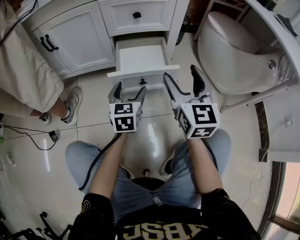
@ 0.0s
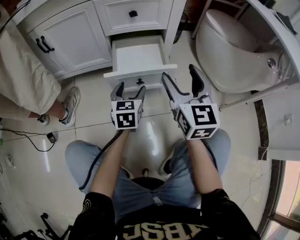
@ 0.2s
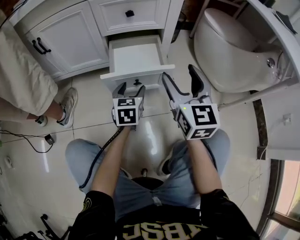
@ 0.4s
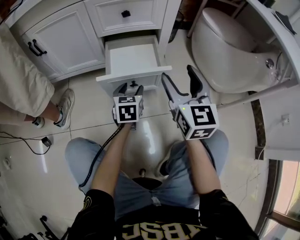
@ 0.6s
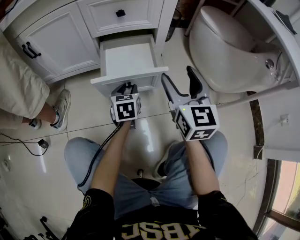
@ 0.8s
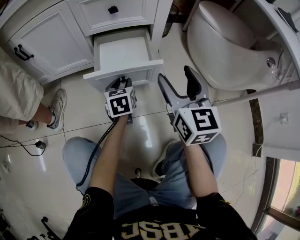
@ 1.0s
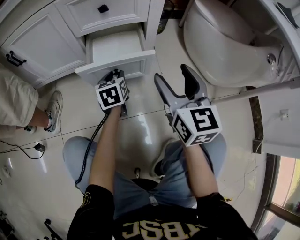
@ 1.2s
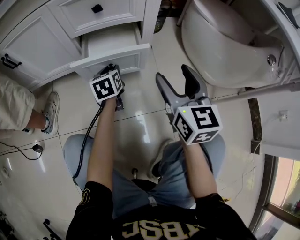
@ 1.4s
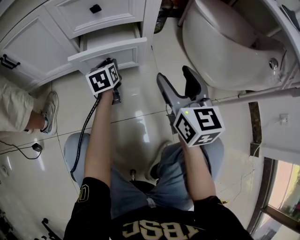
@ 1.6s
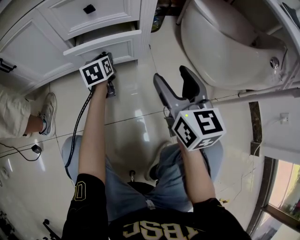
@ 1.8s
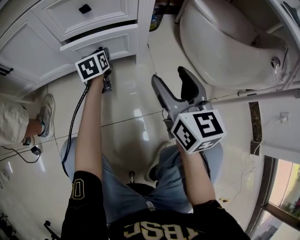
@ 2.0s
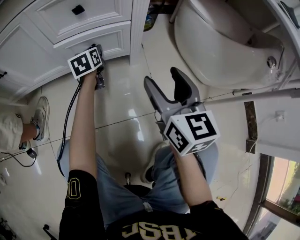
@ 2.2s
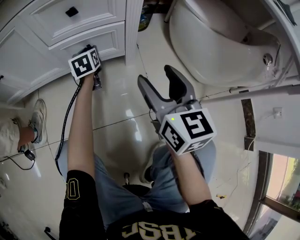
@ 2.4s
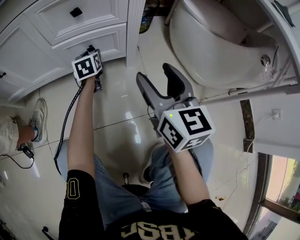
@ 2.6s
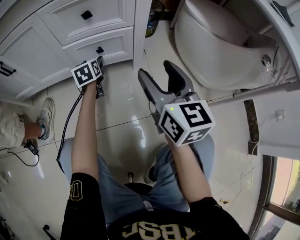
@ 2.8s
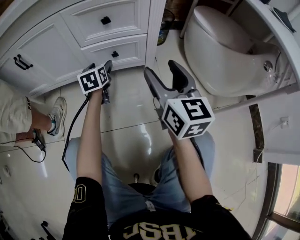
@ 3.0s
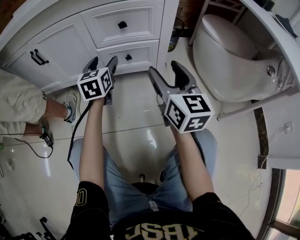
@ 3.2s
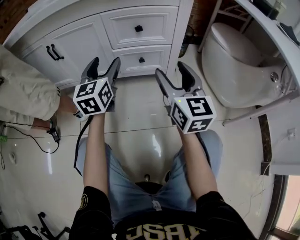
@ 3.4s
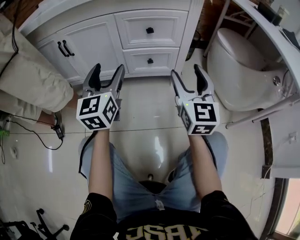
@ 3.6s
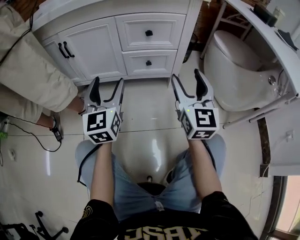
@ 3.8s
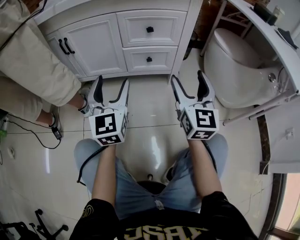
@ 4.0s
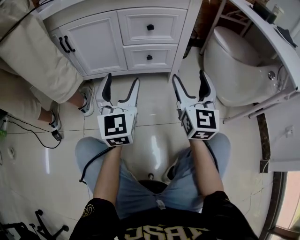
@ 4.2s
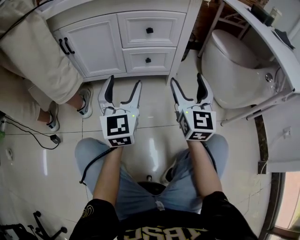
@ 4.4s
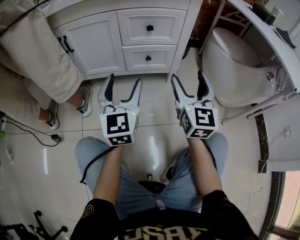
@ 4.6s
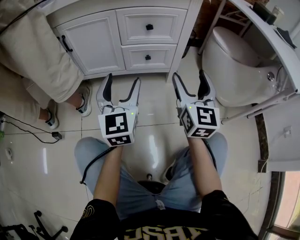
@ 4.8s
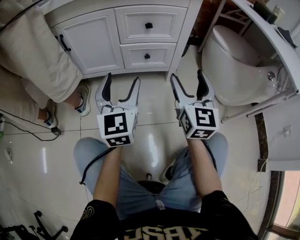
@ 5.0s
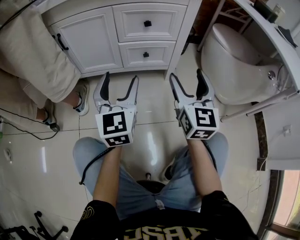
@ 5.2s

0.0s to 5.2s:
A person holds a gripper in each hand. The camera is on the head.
0.0s to 1.8s: The left gripper goes about 20 cm forward, and closes up. Meanwhile the right gripper goes about 10 cm to the right and forward.
1.8s to 3.4s: The right gripper shifts some 15 cm to the left and upward. Meanwhile the left gripper heads upward, backward and to the left, covering about 30 cm, turns by about 30 degrees, and opens its fingers.
3.4s to 5.2s: The left gripper moves backward, roughly 10 cm.

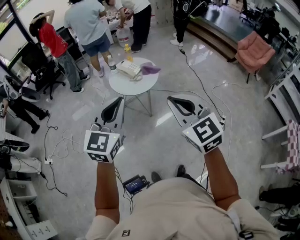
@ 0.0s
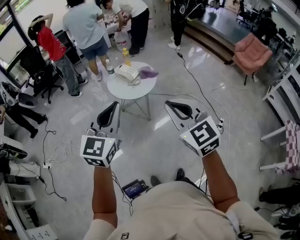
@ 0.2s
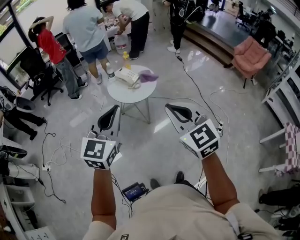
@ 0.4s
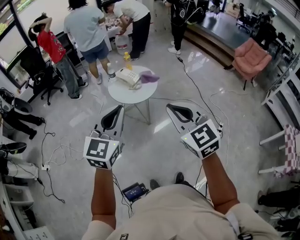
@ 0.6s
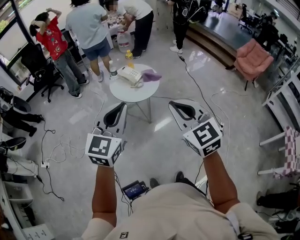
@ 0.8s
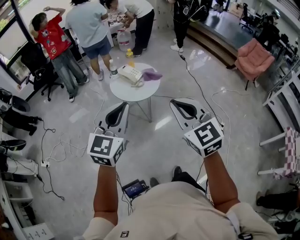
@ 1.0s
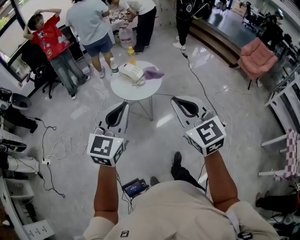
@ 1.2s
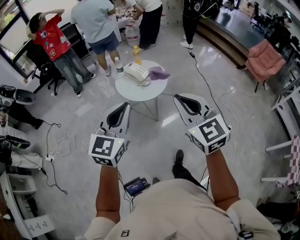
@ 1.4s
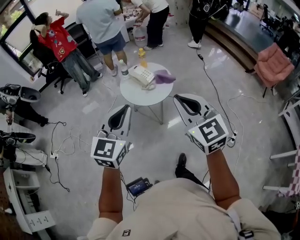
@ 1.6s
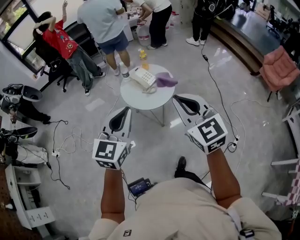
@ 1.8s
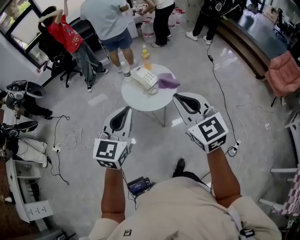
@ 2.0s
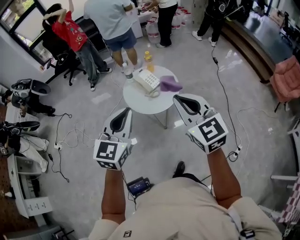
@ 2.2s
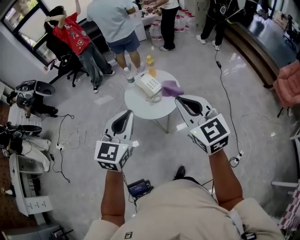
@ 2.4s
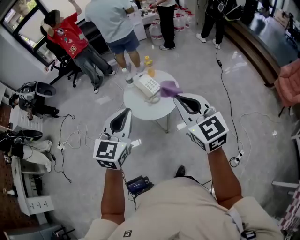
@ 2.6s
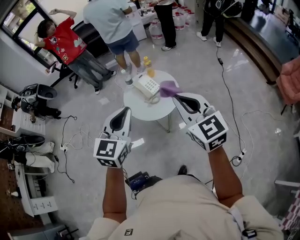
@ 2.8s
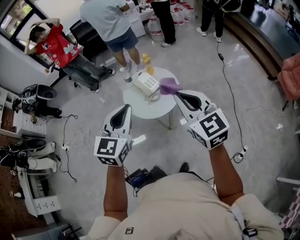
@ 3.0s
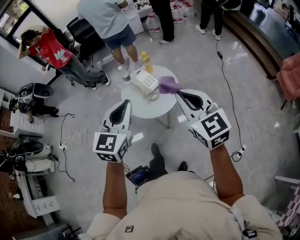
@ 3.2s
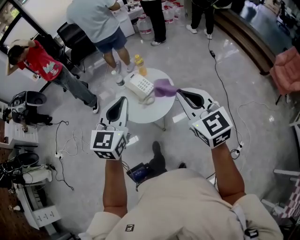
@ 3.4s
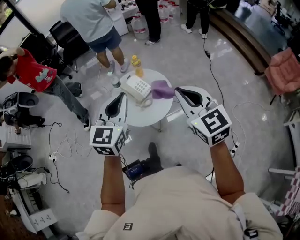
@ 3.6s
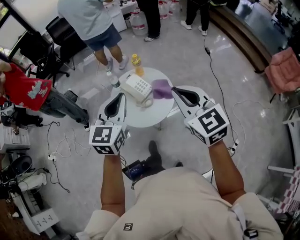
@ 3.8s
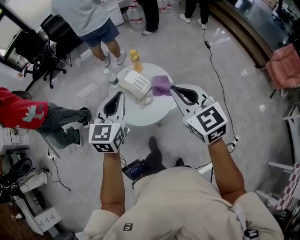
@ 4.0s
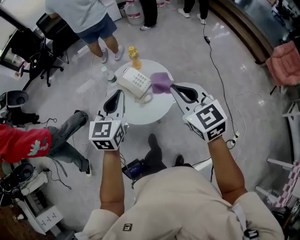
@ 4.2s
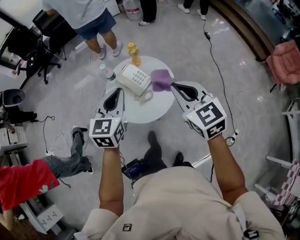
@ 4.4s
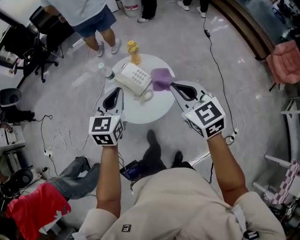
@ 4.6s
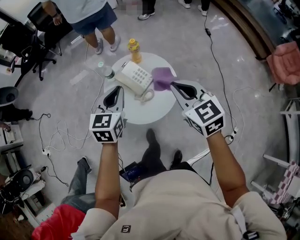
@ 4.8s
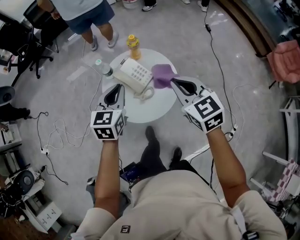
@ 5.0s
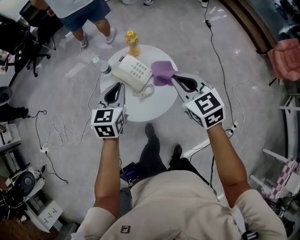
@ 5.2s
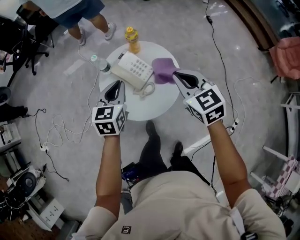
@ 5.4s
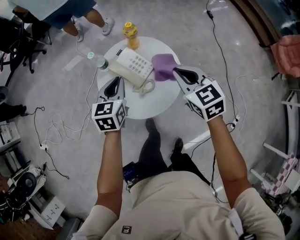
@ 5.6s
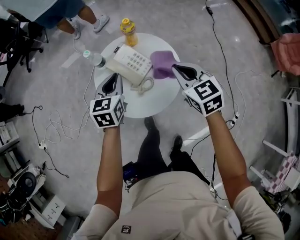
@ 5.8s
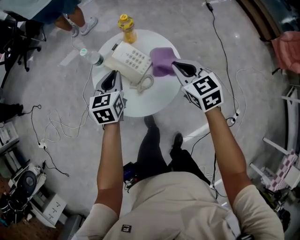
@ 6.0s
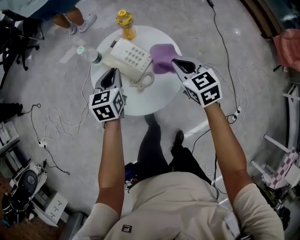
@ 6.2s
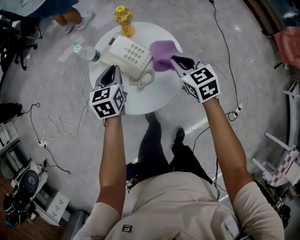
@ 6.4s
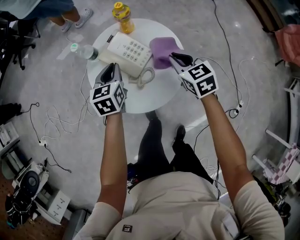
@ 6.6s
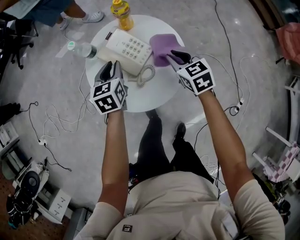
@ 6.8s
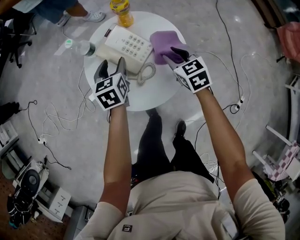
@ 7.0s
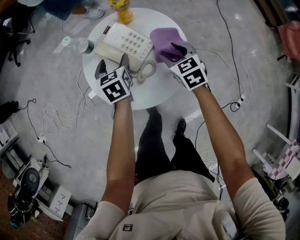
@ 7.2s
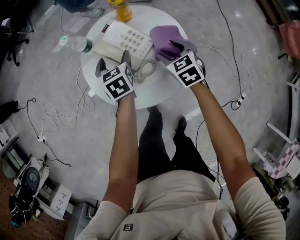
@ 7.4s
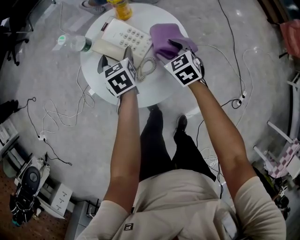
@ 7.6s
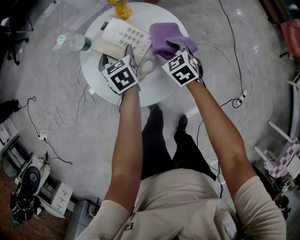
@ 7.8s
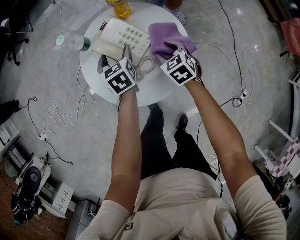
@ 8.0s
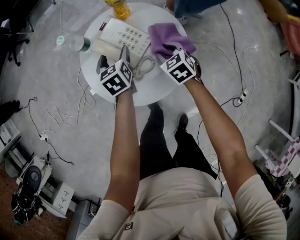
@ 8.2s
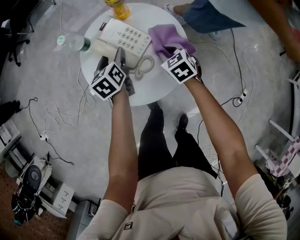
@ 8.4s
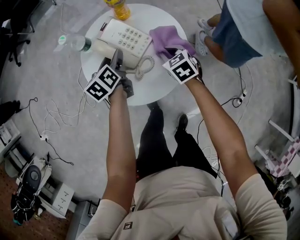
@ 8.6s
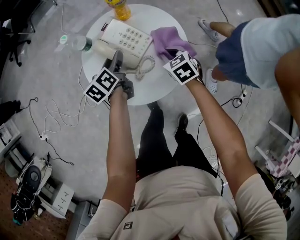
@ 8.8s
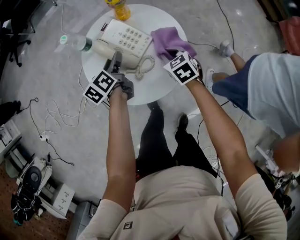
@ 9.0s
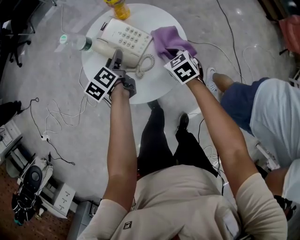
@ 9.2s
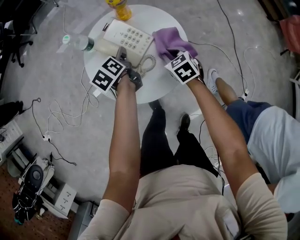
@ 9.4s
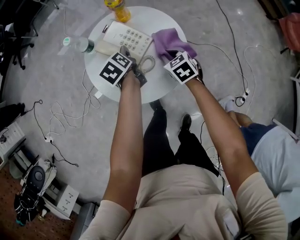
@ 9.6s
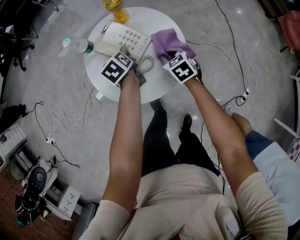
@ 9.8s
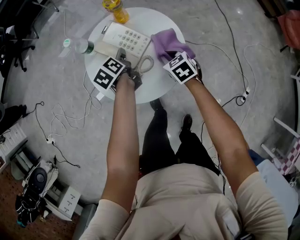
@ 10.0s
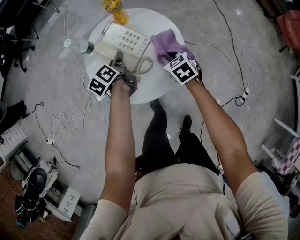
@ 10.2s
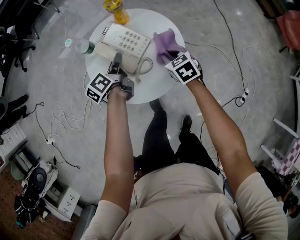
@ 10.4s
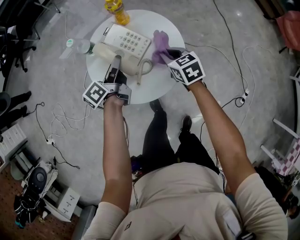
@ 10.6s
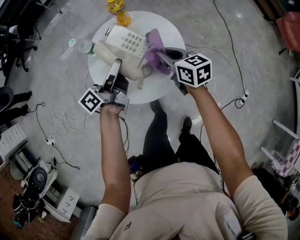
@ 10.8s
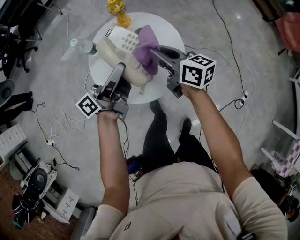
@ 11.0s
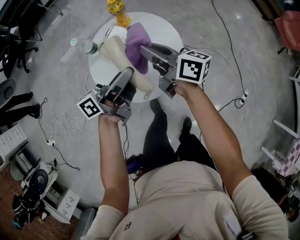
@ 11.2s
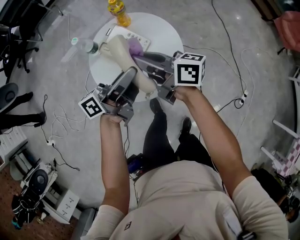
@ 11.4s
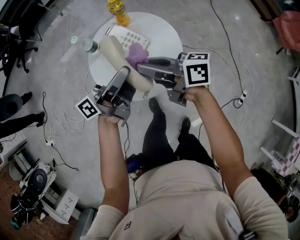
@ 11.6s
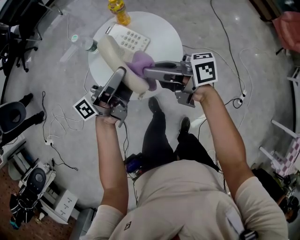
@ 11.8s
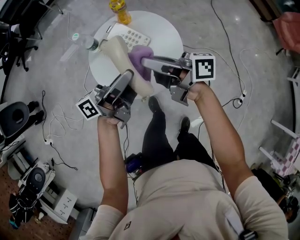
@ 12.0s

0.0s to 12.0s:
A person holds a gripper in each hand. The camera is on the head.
0.0s to 1.6s: Both grippers travel together forward, roughly 15 cm.
1.6s to 3.0s: The two grippers go approximately 20 cm forward and to the right.
3.0s to 4.4s: Both grippers travel together forward and downward, approximately 25 cm.
4.4s to 6.0s: Both grippers move downward and forward, approximately 25 cm.
6.0s to 7.6s: The grippers both shift downward by some 15 cm. The right gripper opens its fingers, while the left gripper turns by roughly 20 degrees, and opens up.
7.6s to 9.0s: The left gripper swivels some 40 degrees, and closes. Meanwhile the right gripper closes up.
10.4s to 12.0s: The right gripper moves upward, roughly 25 cm, and points its fingers about 60 degrees further upward; the left gripper heads upward and backward, covering about 25 cm, and tilts its fingers some 40 degrees upward.

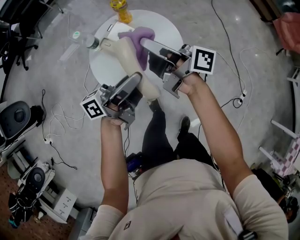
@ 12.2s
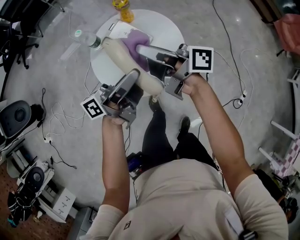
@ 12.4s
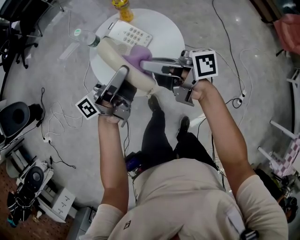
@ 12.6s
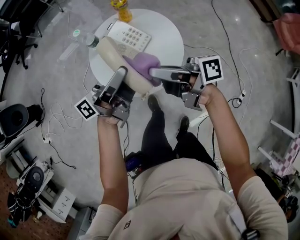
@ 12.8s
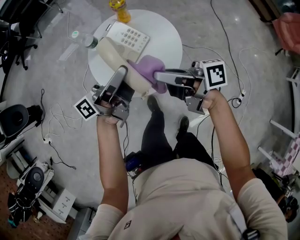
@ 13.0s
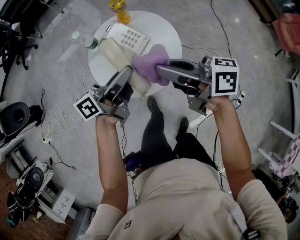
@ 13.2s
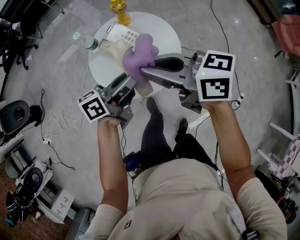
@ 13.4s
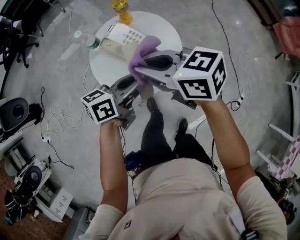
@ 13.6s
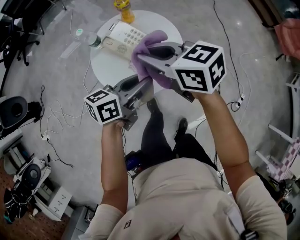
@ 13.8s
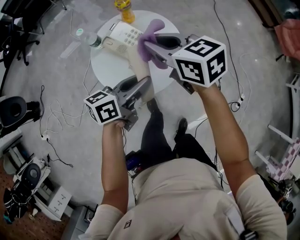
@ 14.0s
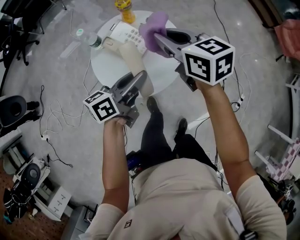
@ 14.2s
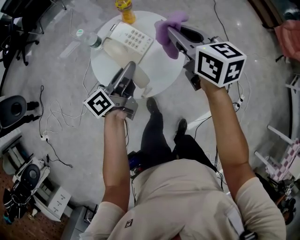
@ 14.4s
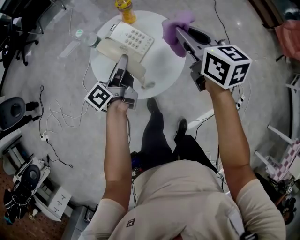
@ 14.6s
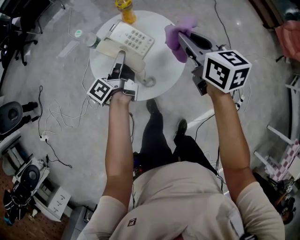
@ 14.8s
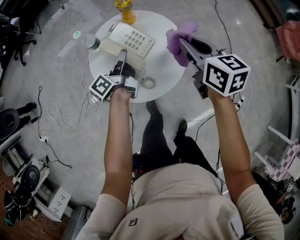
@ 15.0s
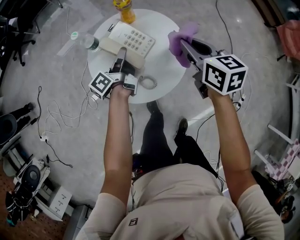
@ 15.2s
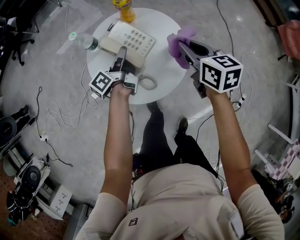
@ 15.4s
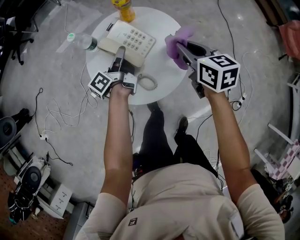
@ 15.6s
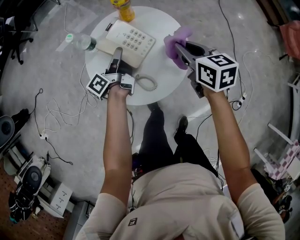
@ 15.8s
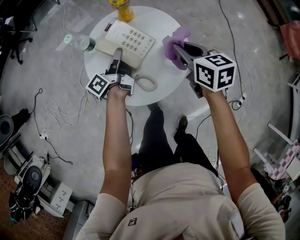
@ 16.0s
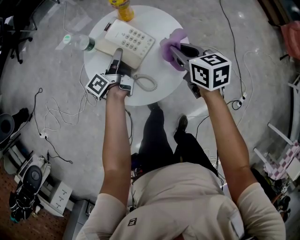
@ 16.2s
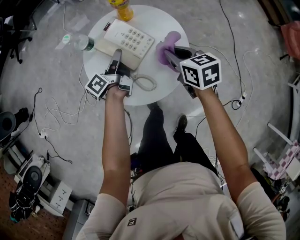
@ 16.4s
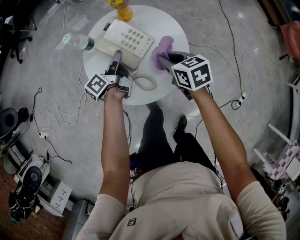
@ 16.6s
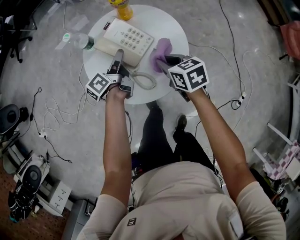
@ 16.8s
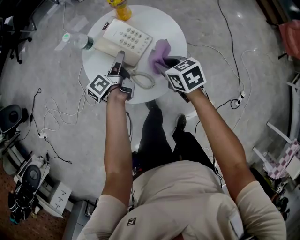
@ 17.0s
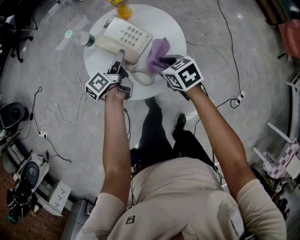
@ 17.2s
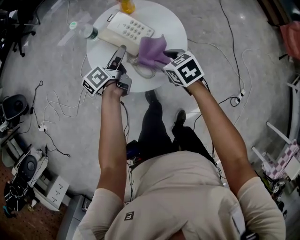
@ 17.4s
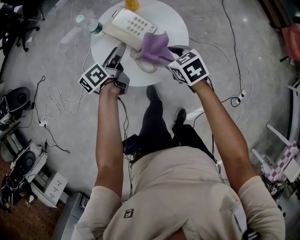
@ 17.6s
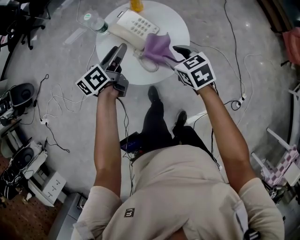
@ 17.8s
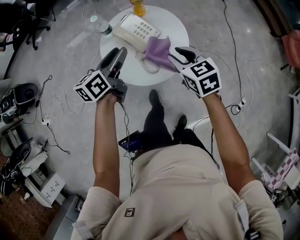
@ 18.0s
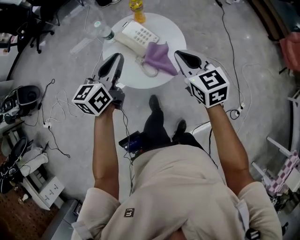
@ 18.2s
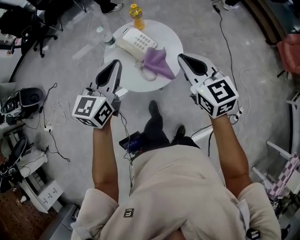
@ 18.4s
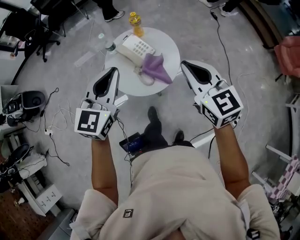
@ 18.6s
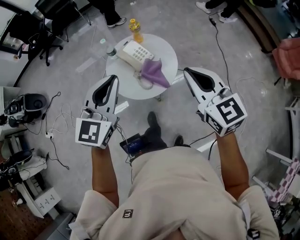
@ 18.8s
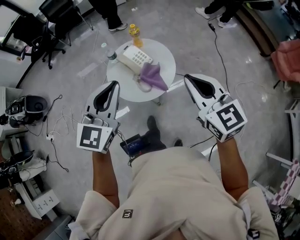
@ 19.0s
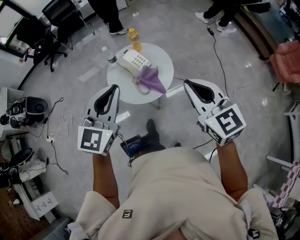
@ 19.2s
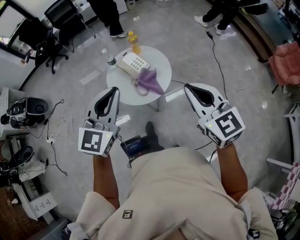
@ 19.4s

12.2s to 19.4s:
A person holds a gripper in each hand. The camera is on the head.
12.2s to 13.6s: The right gripper shifts by approximately 10 cm, and angles its fingers downward, by roughly 40 degrees; the left gripper tilts its fingers roughly 30 degrees downward.
13.6s to 15.0s: The left gripper moves approximately 20 cm, and changes its angle by roughly 50 degrees, while the right gripper ends up approximately 15 cm from where it was, and rotates roughly 30 degrees.
15.0s to 16.6s: The right gripper is displaced downward by approximately 20 cm, and changes its angle by approximately 20 degrees. The left gripper shifts about 5 cm downward.
16.6s to 18.0s: Both grippers move upward and backward, approximately 20 cm. The left gripper turns by roughly 40 degrees. Meanwhile the right gripper opens.
18.0s to 19.4s: Both grippers travel together upward and backward, roughly 35 cm. The right gripper swivels roughly 30 degrees, and closes up. Meanwhile the left gripper rolls clockwise, seen from behind, by about 50 degrees, and closes.
